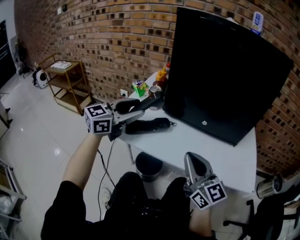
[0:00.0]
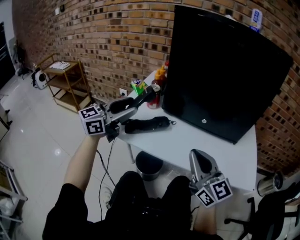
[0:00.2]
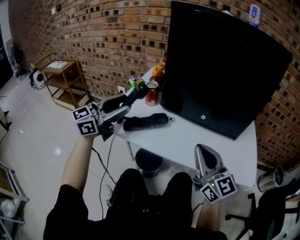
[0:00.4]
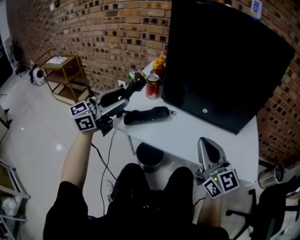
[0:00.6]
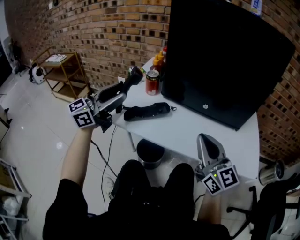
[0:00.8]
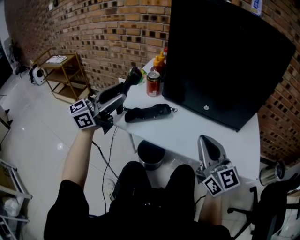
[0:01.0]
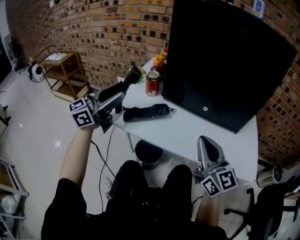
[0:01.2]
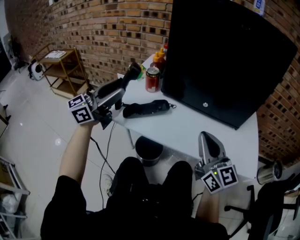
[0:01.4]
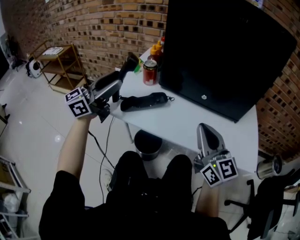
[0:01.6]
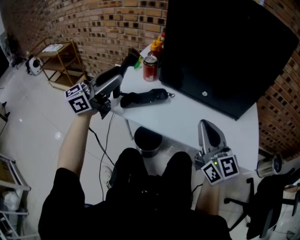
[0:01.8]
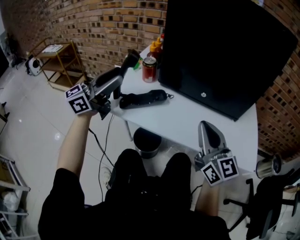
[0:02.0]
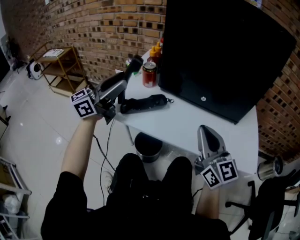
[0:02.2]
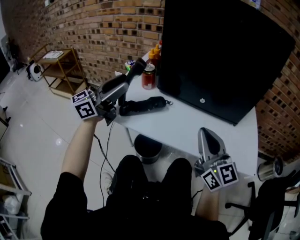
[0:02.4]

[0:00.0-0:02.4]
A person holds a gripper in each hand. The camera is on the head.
0.0 to 1.2 s: The left gripper changes place by roughly 5 cm.
1.2 to 2.4 s: The grippers move only a little.

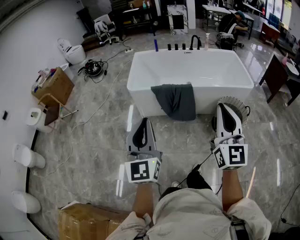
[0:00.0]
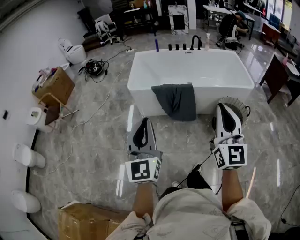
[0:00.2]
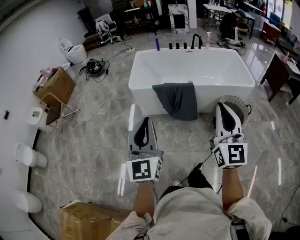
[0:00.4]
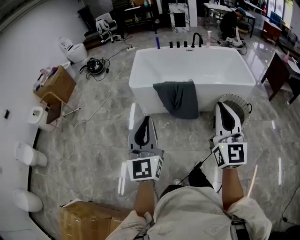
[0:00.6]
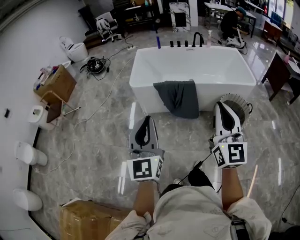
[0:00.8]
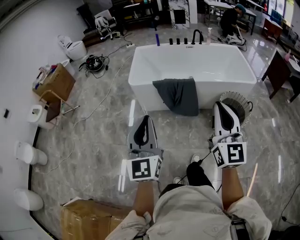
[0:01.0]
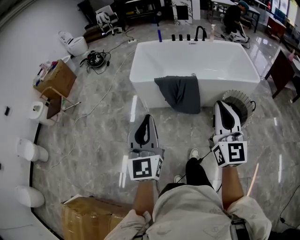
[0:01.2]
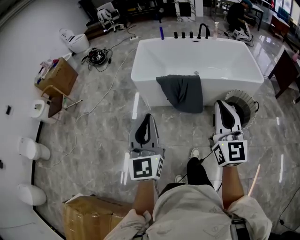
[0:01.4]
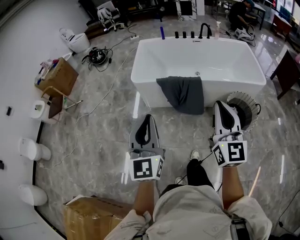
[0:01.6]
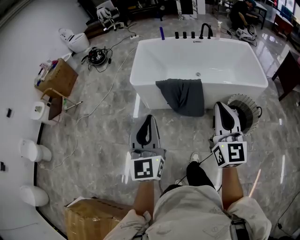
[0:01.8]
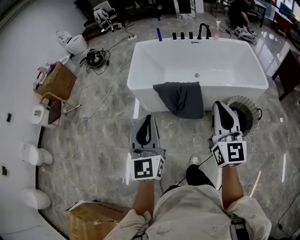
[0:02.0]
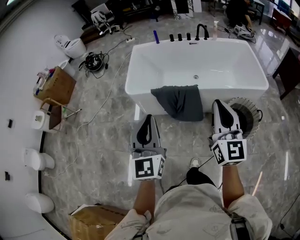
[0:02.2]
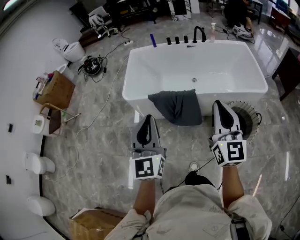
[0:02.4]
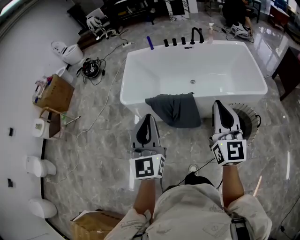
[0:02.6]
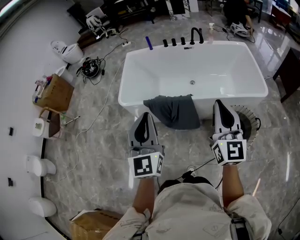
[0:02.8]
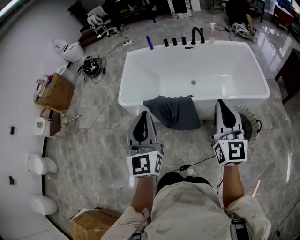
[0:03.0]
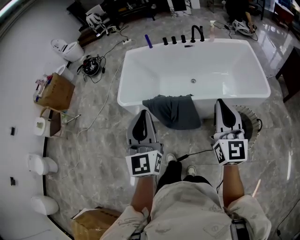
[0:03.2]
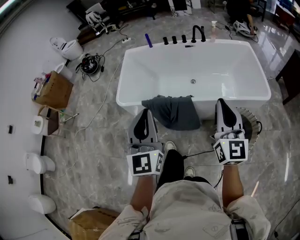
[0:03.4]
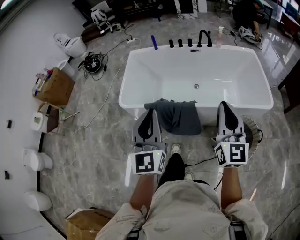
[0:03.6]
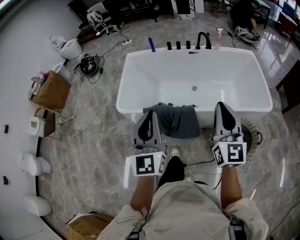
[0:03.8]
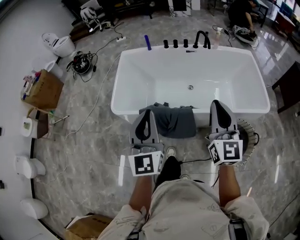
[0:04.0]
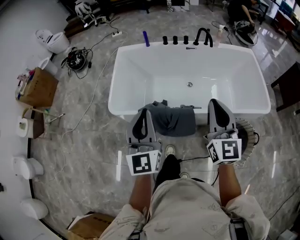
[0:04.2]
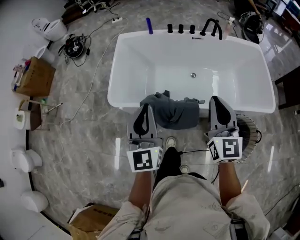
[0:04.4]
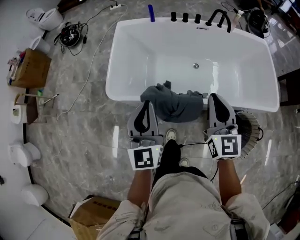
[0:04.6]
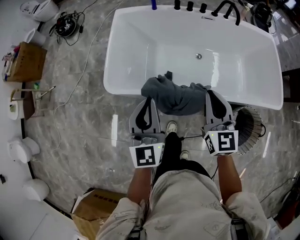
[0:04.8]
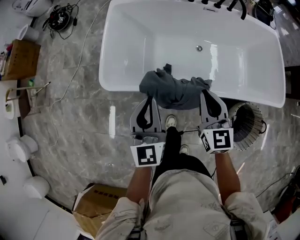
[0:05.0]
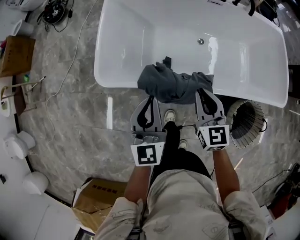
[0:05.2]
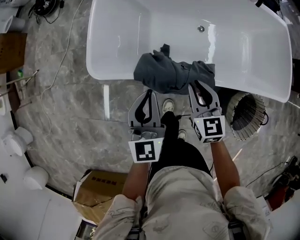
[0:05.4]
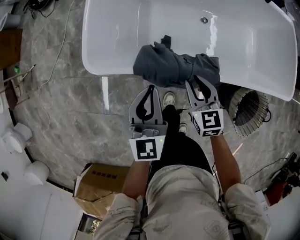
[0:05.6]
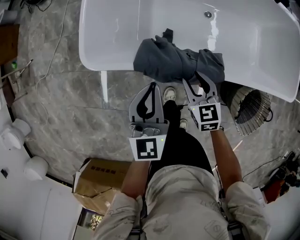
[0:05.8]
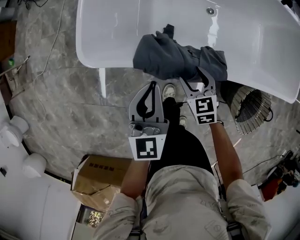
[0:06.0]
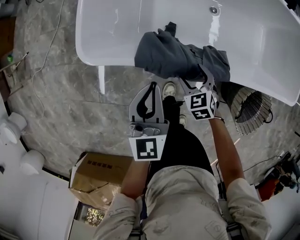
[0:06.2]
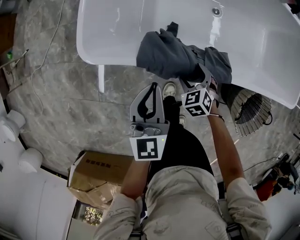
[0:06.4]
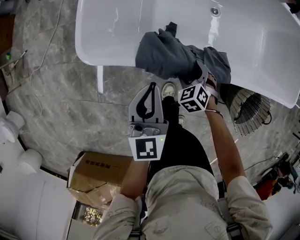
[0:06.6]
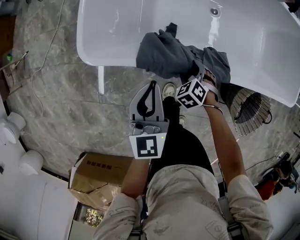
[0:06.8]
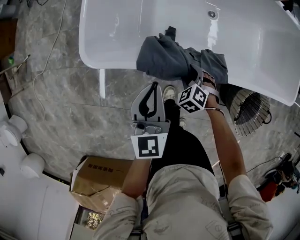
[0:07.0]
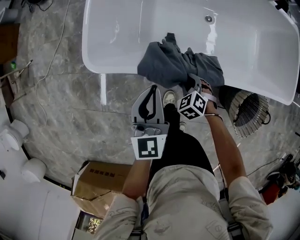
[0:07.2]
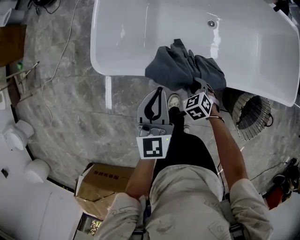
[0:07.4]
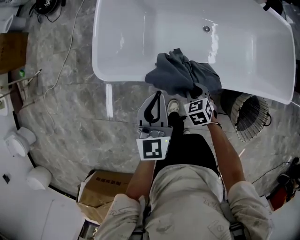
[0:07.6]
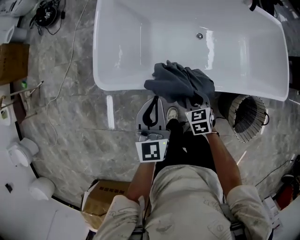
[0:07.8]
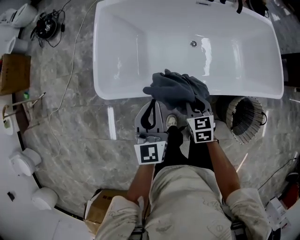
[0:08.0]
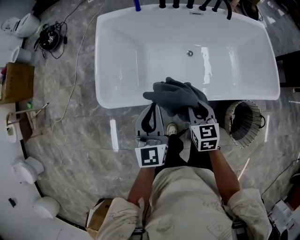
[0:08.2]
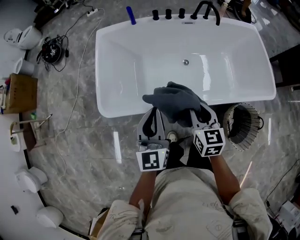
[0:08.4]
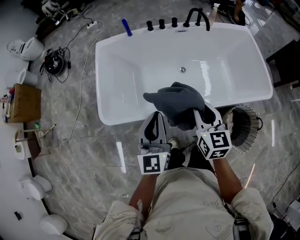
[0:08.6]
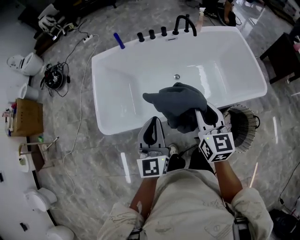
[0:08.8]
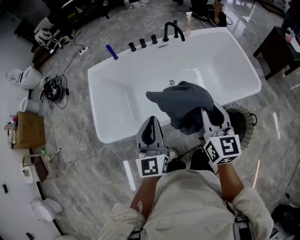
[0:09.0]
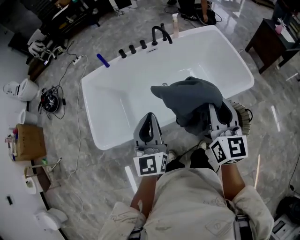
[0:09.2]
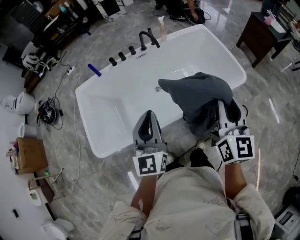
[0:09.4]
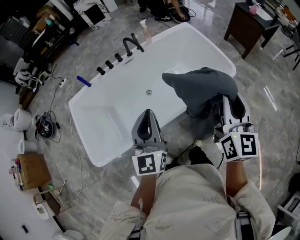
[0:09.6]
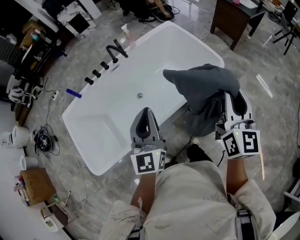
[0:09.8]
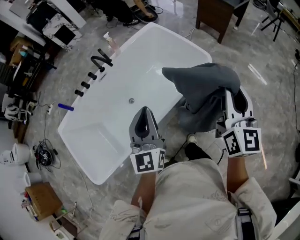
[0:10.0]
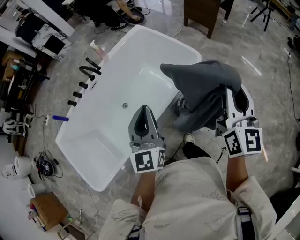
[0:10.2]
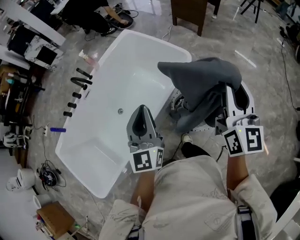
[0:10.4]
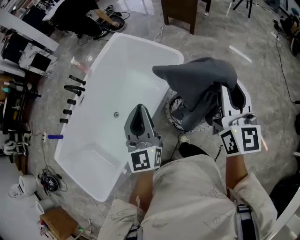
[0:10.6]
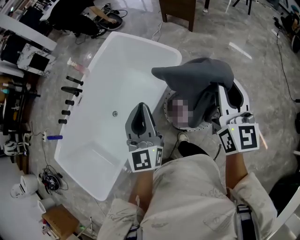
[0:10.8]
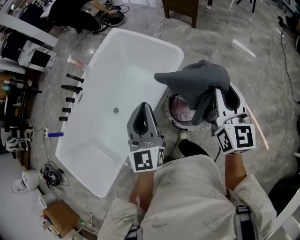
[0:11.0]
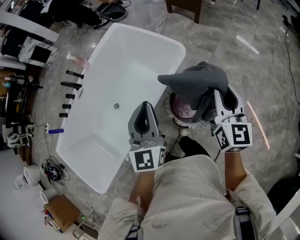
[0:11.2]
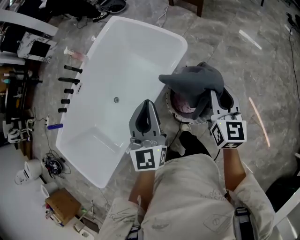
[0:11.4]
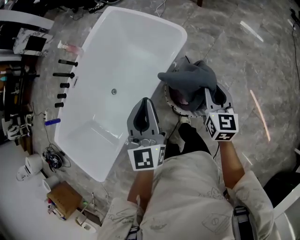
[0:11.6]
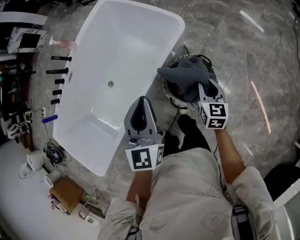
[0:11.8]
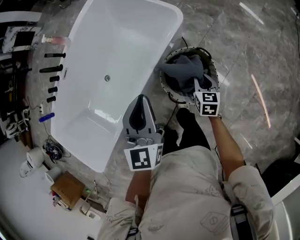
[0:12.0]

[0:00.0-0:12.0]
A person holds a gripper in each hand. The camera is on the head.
0.0 to 1.6 s: Both grippers move forward, approximately 10 cm.
1.6 to 3.0 s: The two grippers go approximately 30 cm forward and to the right.
3.0 to 4.4 s: The left gripper travels forward and downward by approximately 25 cm. The right gripper is displaced forward and to the left by roughly 25 cm.
4.4 to 6.0 s: The left gripper shifts some 30 cm downward, and turns by some 20 degrees. Meanwhile the right gripper goes approximately 50 cm downward, tips its fingers downward by approximately 50 degrees, and opens its fingers.
6.0 to 7.6 s: The left gripper changes place by roughly 5 cm. The right gripper reaches approximately 10 cm downward, then returns, and closes up.
7.6 to 9.0 s: The right gripper travels upward and to the right by roughly 50 cm, and tips its fingers upward by some 50 degrees, while the left gripper shifts approximately 30 cm upward and to the right, and swivels some 20 degrees.
9.0 to 10.4 s: The left gripper shifts by about 40 cm, and rotates approximately 40 degrees. Meanwhile the right gripper shifts by some 50 cm, and turns by roughly 50 degrees.
10.4 to 12.0 s: The right gripper moves downward, roughly 50 cm, and tilts its fingers about 50 degrees downward. The left gripper moves downward, to the right and forward, some 20 cm.

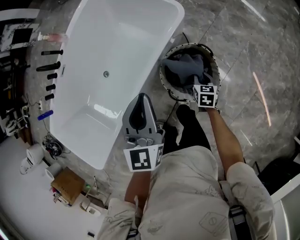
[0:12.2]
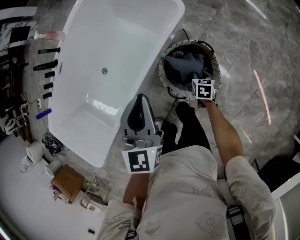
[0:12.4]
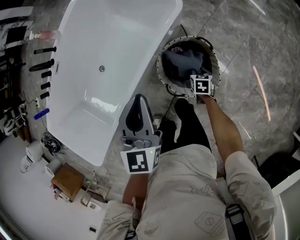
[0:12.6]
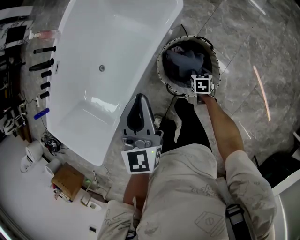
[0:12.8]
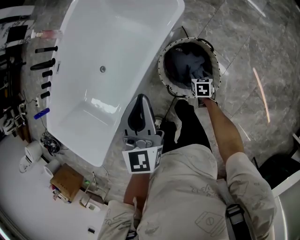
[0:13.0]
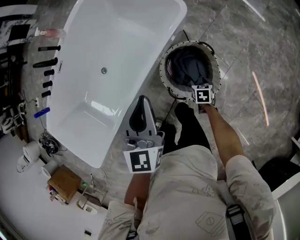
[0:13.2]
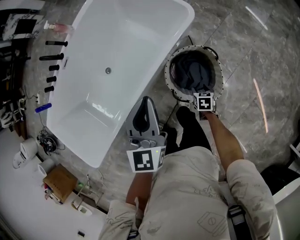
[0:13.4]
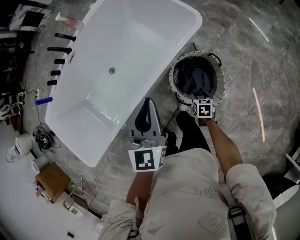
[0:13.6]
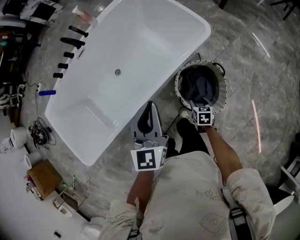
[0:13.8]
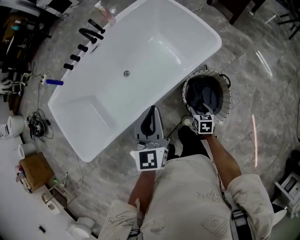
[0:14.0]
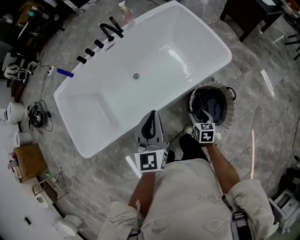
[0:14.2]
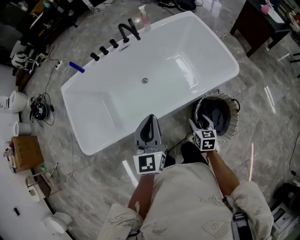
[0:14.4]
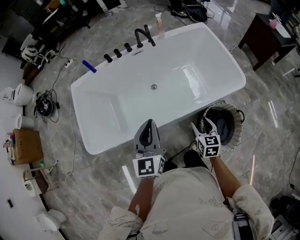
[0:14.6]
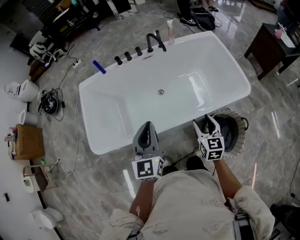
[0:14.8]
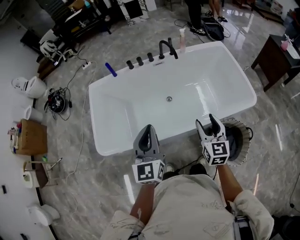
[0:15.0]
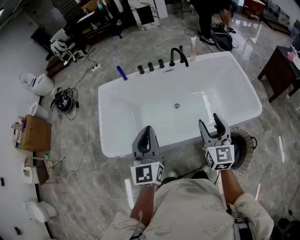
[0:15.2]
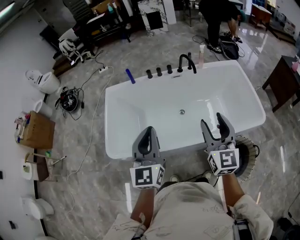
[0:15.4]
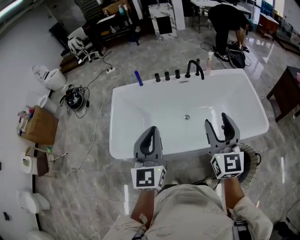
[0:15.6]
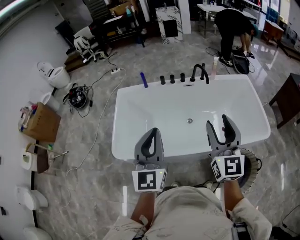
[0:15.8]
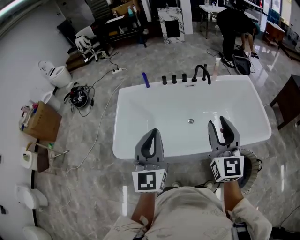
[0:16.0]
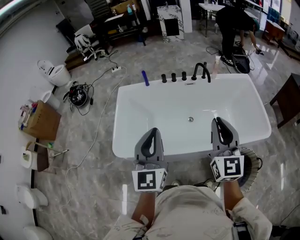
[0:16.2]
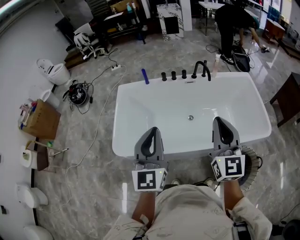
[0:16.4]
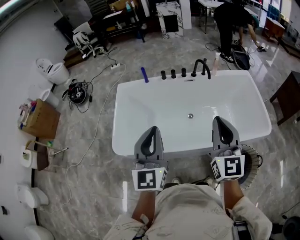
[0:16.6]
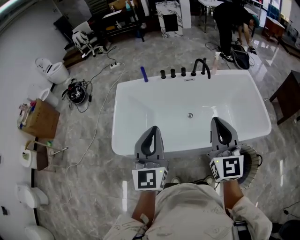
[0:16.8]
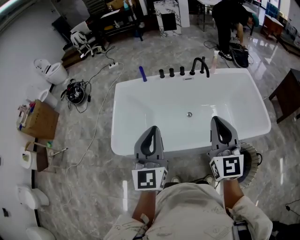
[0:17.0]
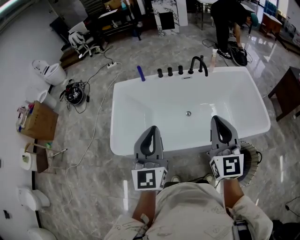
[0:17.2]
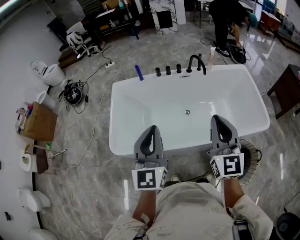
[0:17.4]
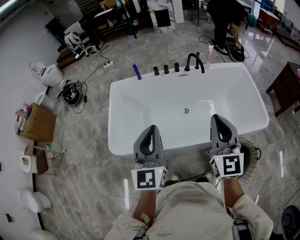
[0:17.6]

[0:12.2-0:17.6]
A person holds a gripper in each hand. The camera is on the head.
12.2 to 13.6 s: The left gripper heads to the left, covering some 5 cm; the right gripper moves backward and to the left, roughly 10 cm, and opens up.
13.6 to 15.0 s: The right gripper moves upward, roughly 40 cm, and angles its fingers upward, by some 50 degrees, while the left gripper ends up approximately 40 cm from where it was, and changes its angle by approximately 40 degrees.
15.0 to 16.2 s: The right gripper moves upward and to the left, about 25 cm, changes its angle by roughly 20 degrees, and closes. The left gripper goes some 15 cm to the left and upward.
16.2 to 17.6 s: The grippers make only small movements.

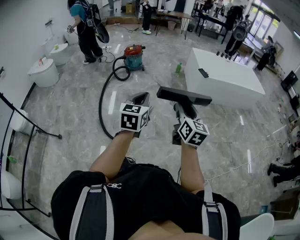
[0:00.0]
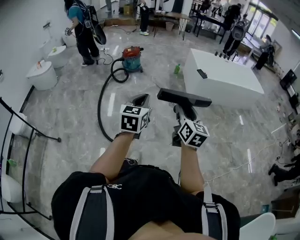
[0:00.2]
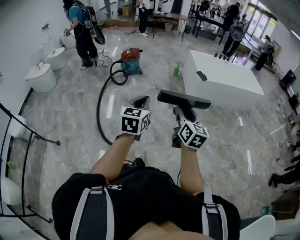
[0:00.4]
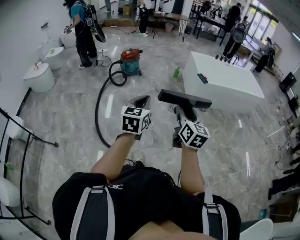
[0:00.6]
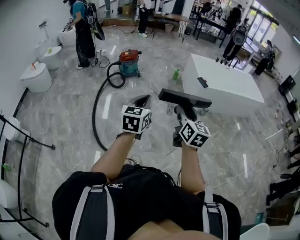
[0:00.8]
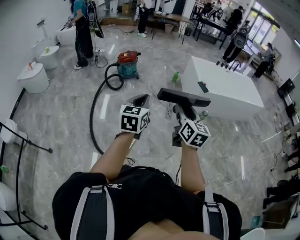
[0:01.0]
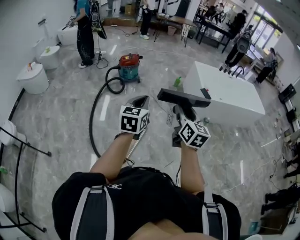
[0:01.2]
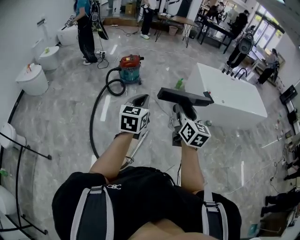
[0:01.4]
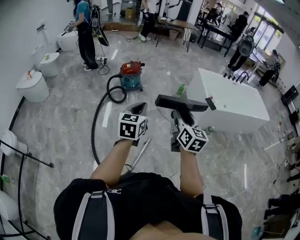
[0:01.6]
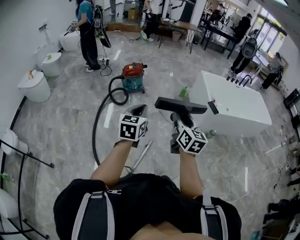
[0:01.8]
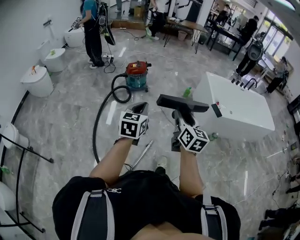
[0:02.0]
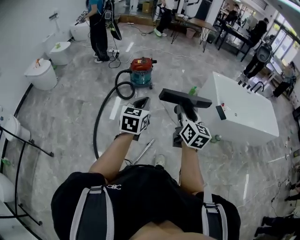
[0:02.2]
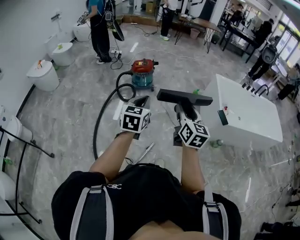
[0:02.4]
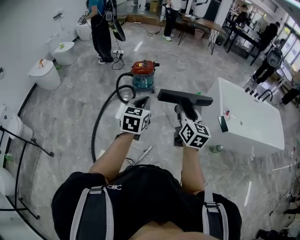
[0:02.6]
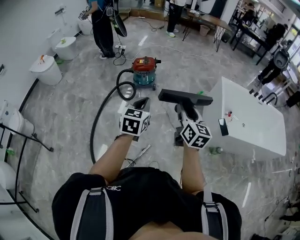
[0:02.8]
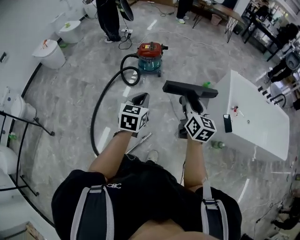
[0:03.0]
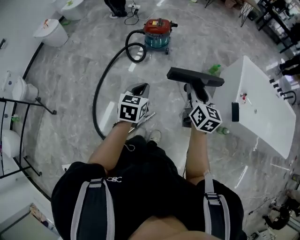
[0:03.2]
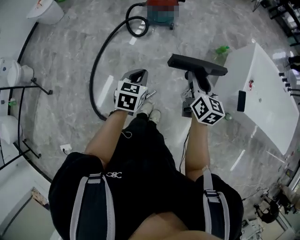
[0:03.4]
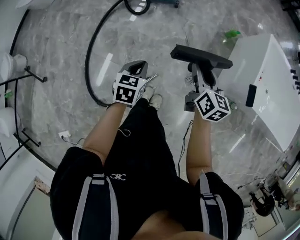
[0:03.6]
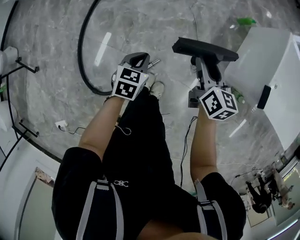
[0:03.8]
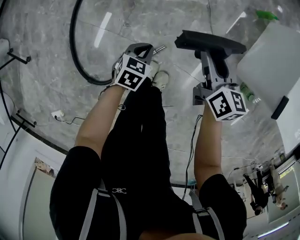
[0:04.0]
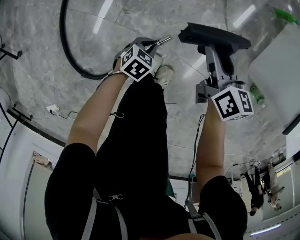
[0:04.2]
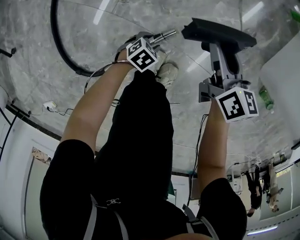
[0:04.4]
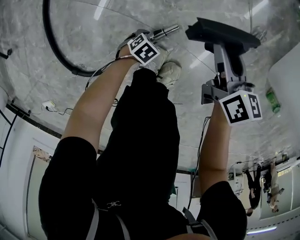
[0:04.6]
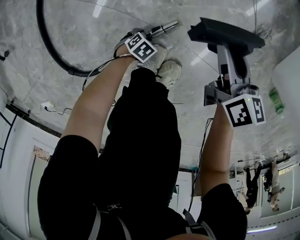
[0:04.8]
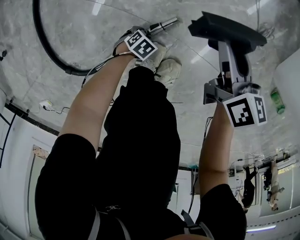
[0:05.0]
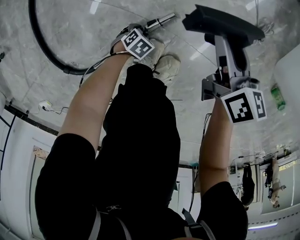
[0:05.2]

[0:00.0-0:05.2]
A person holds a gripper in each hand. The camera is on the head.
0.0 to 1.8 s: The pair of grippers is taken forward, approximately 50 cm.
1.8 to 3.4 s: Both grippers travel together forward and downward, some 35 cm. The right gripper changes its angle by approximately 20 degrees. Meanwhile the left gripper rotates some 30 degrees.
3.4 to 5.2 s: The two grippers go about 80 cm downward. The right gripper turns by roughly 20 degrees. The left gripper angles its fingers downward, by approximately 40 degrees, and opens.
